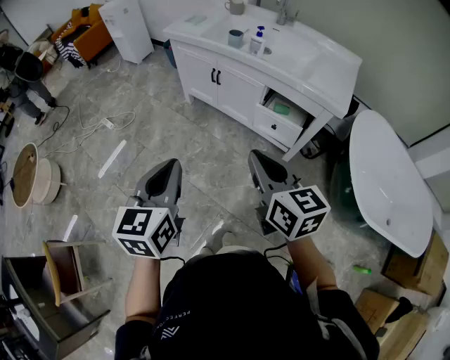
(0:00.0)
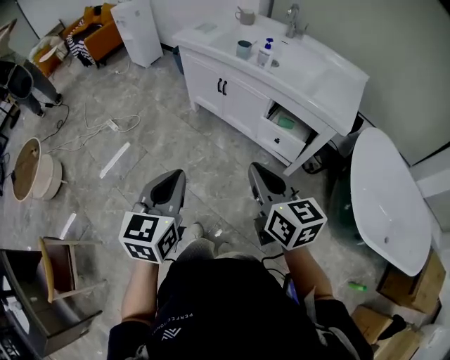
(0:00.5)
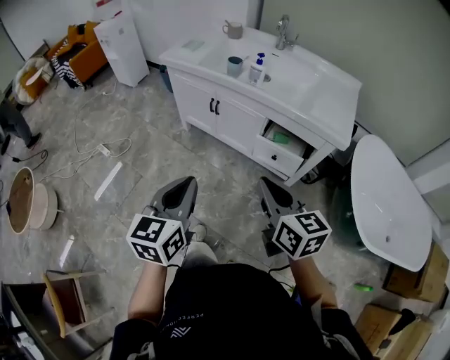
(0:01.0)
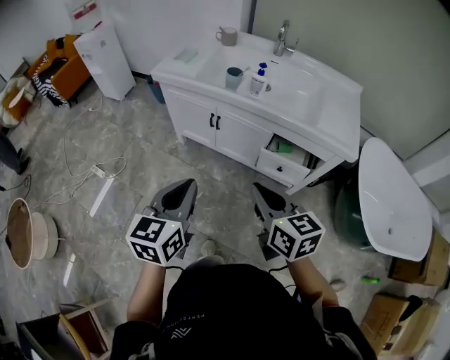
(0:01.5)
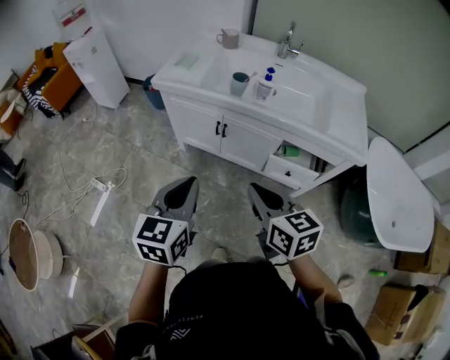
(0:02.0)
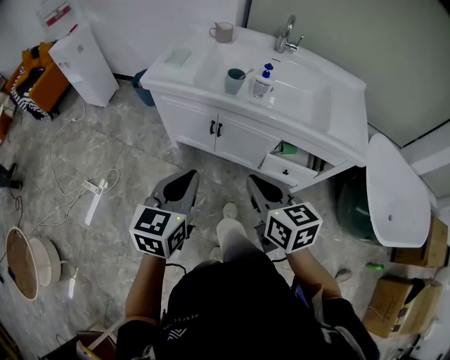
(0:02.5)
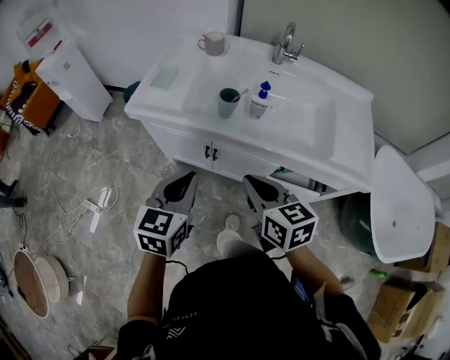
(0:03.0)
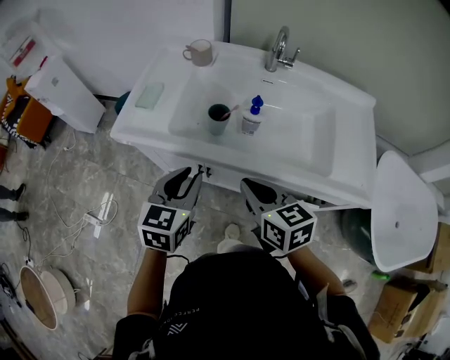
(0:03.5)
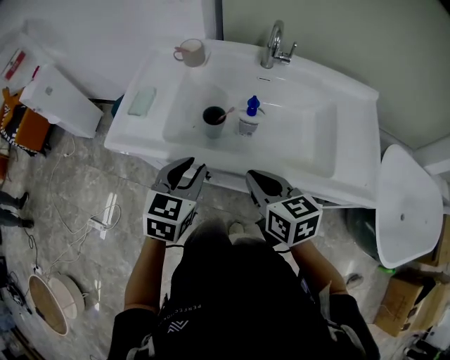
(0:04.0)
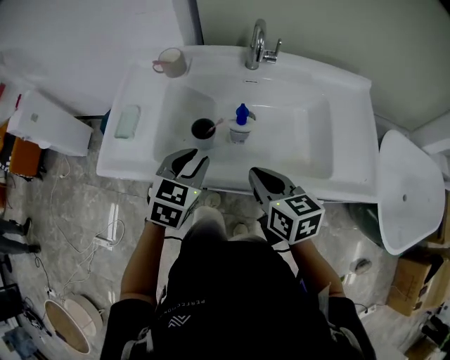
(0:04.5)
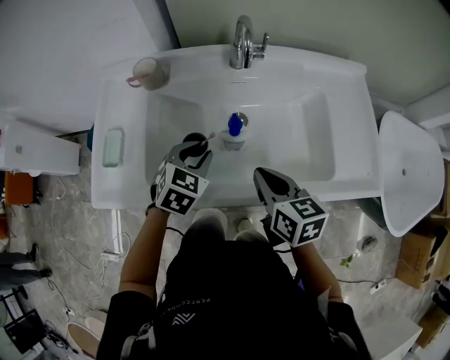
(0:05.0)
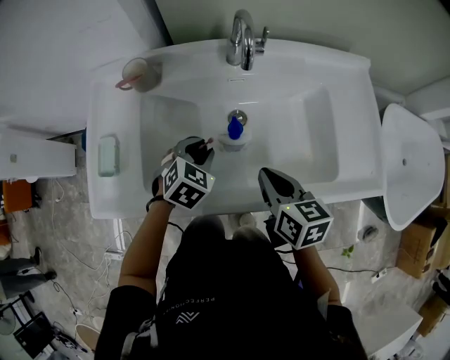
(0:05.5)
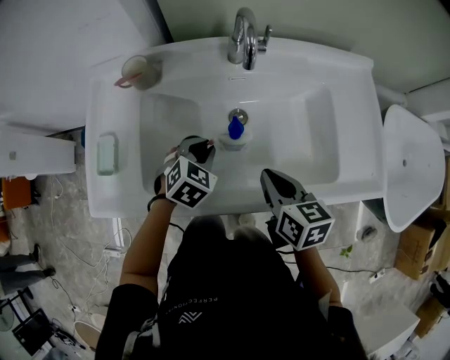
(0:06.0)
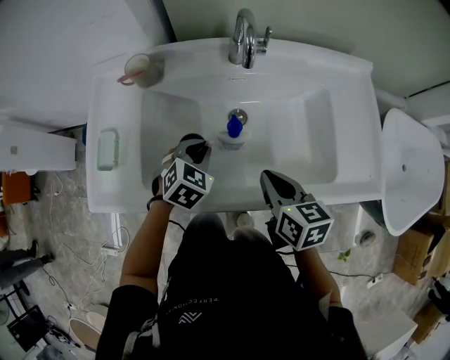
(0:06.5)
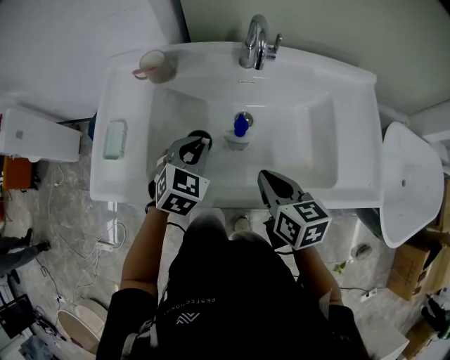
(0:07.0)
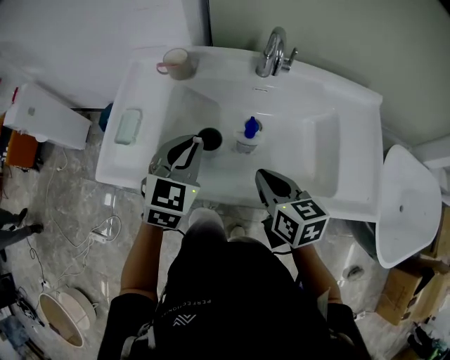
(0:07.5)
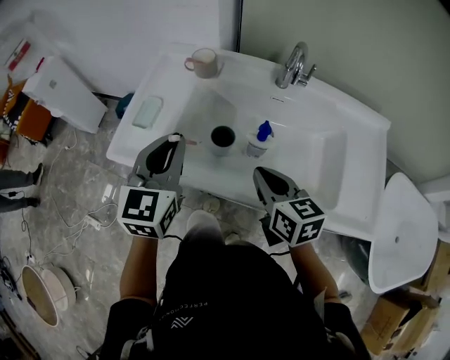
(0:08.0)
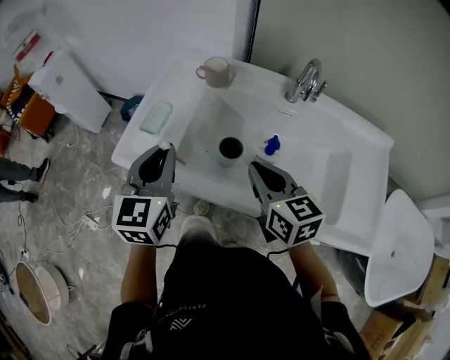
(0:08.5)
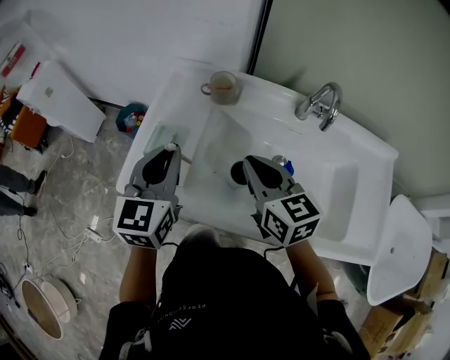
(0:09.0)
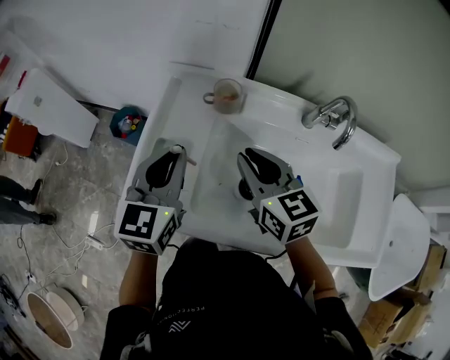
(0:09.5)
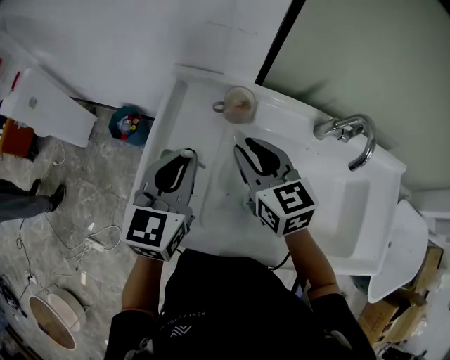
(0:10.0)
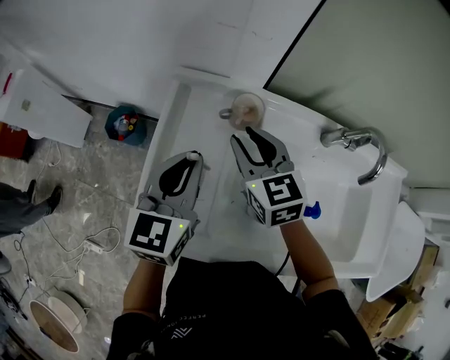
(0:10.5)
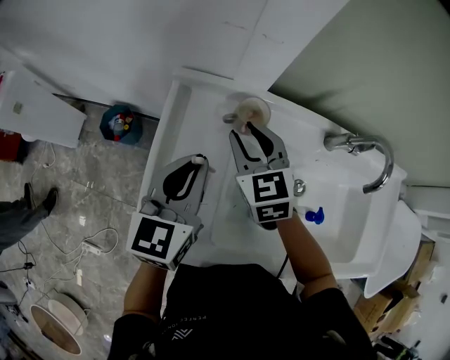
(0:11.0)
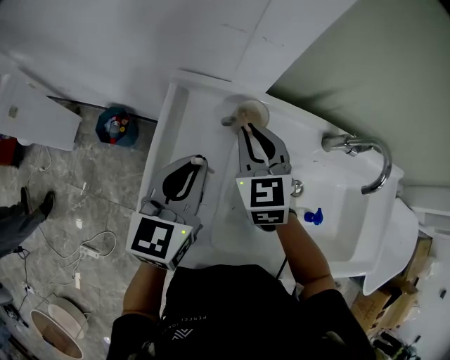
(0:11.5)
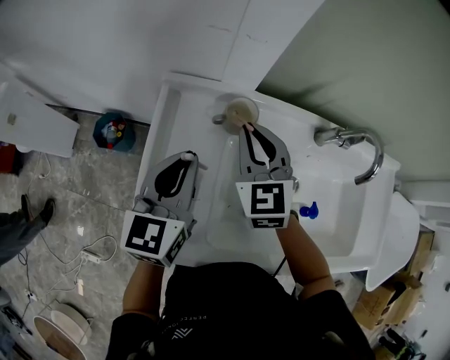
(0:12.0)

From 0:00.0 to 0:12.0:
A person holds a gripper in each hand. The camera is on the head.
From 0:00.0 to 0:02.0: The left gripper travels forward by approximately 30 cm, and swivels roughly 20 degrees. Meanwhile the right gripper travels forward and to the left by roughly 25 cm.
From 0:02.0 to 0:04.0: Both grippers travel together forward, approximately 35 cm. The left gripper turns by approximately 20 degrees, and opens up.
From 0:04.0 to 0:06.0: The left gripper is displaced forward and downward by some 25 cm, and changes its angle by approximately 40 degrees. Meanwhile the right gripper is displaced forward and to the right by about 15 cm, and changes its angle by approximately 30 degrees.
From 0:06.0 to 0:08.0: The right gripper moves some 10 cm, and turns by approximately 30 degrees, while the left gripper travels upward by roughly 20 cm, and points its fingers roughly 40 degrees further upward.
From 0:08.0 to 0:10.0: The left gripper moves forward, approximately 20 cm; the right gripper is displaced forward and to the left by roughly 30 cm.
From 0:10.0 to 0:12.0: The right gripper shifts roughly 10 cm forward, and changes its angle by about 30 degrees. Meanwhile the left gripper ends up roughly 5 cm from where it was.

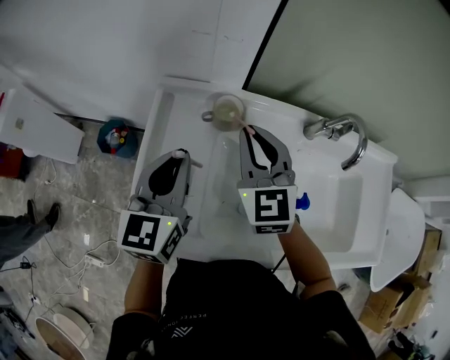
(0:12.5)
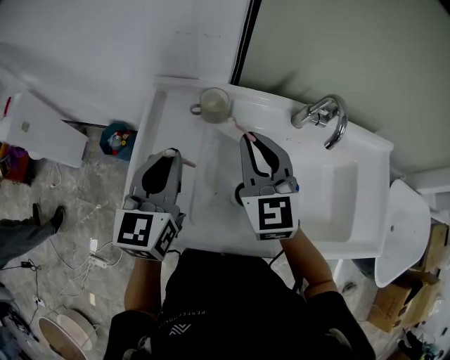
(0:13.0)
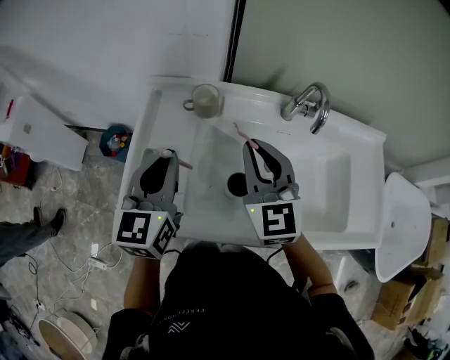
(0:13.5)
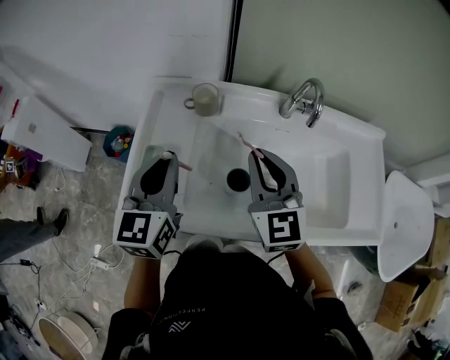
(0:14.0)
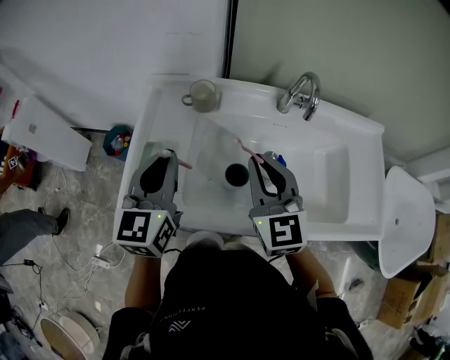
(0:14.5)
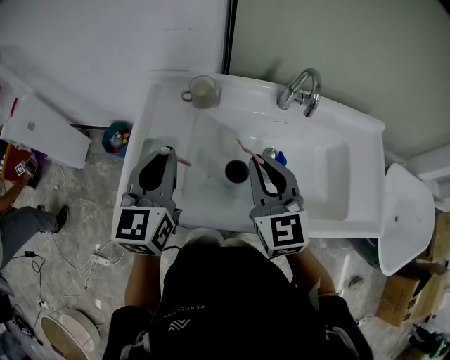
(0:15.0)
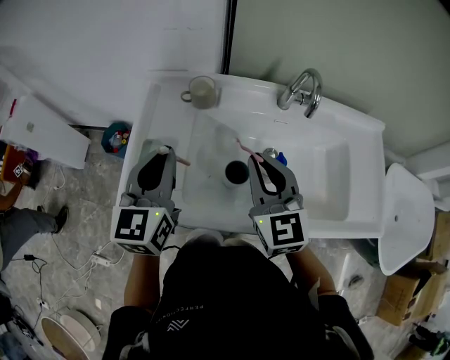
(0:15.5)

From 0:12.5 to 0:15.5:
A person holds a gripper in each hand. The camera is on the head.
From 0:12.5 to 0:14.0: The left gripper moves backward, about 10 cm. The right gripper goes approximately 15 cm backward and to the right.
From 0:14.0 to 0:15.5: There are only small adjustments of the grippers.

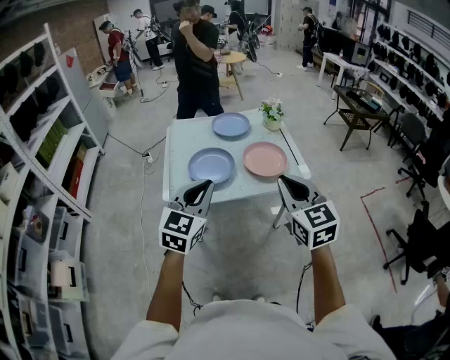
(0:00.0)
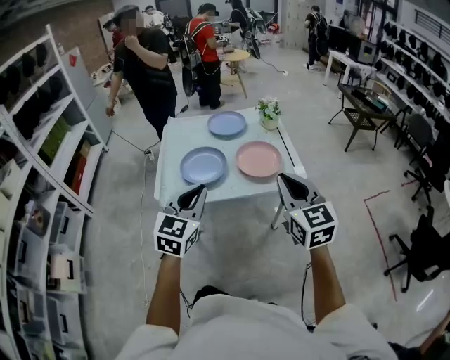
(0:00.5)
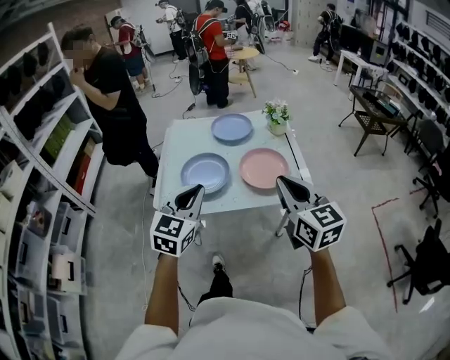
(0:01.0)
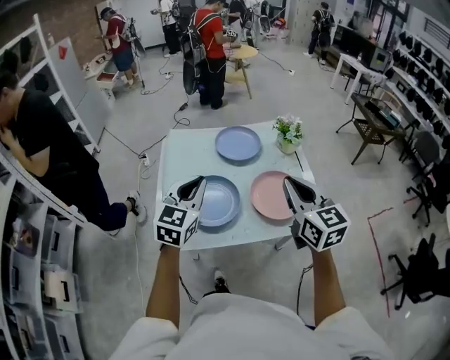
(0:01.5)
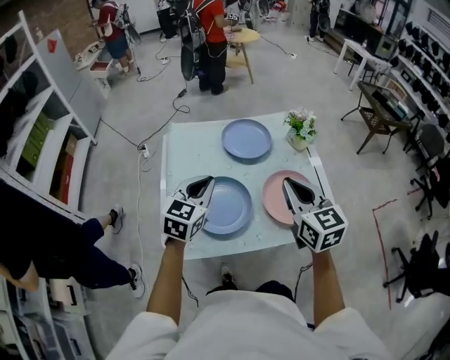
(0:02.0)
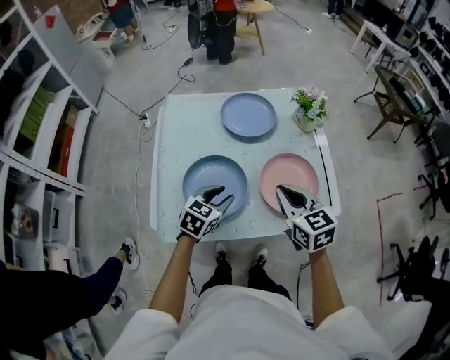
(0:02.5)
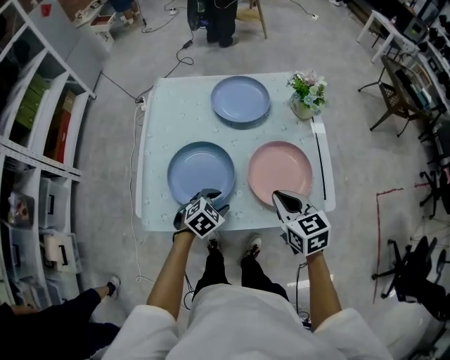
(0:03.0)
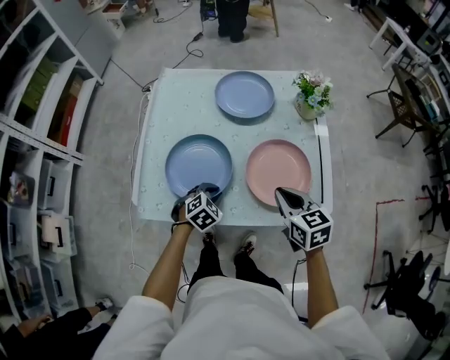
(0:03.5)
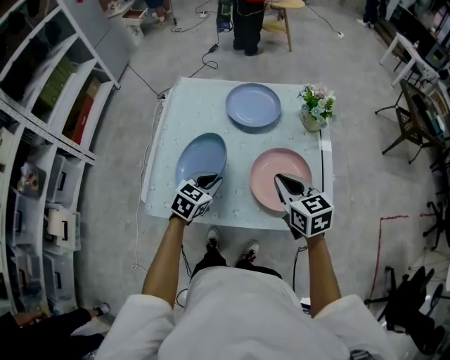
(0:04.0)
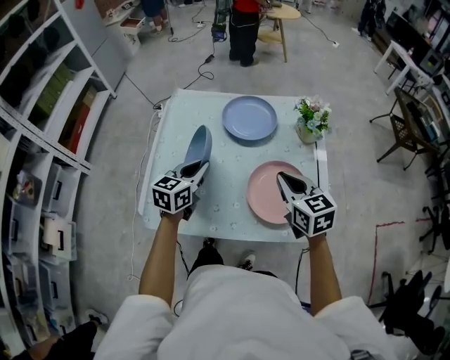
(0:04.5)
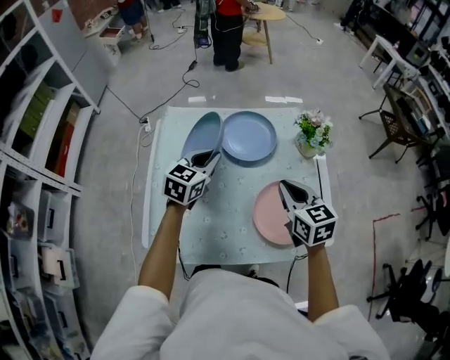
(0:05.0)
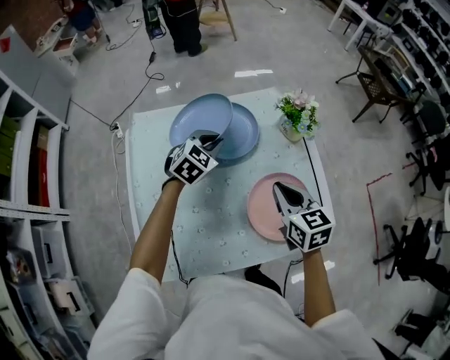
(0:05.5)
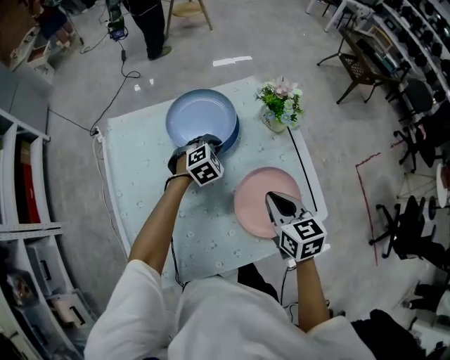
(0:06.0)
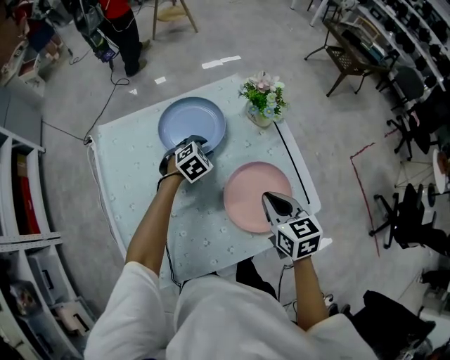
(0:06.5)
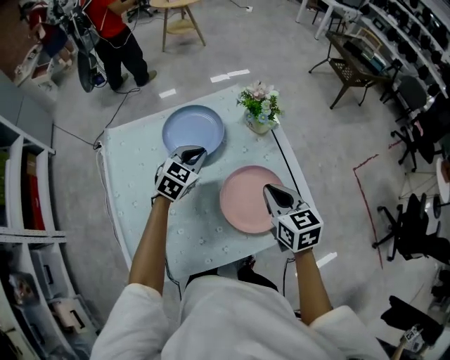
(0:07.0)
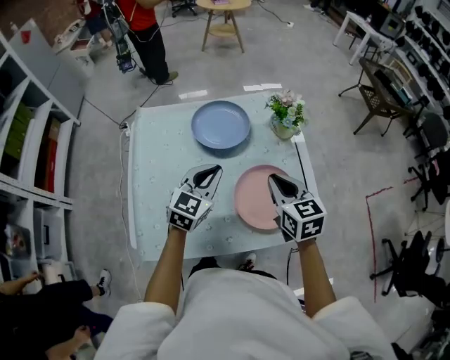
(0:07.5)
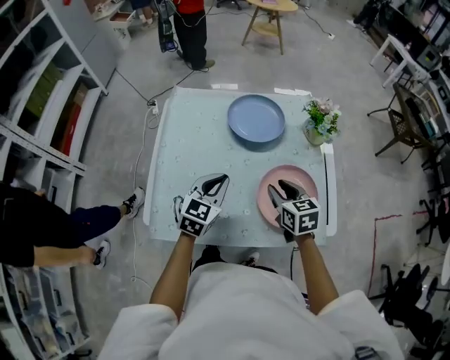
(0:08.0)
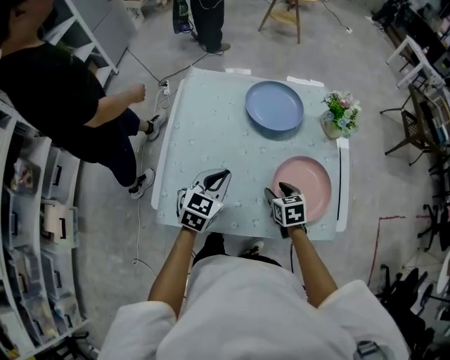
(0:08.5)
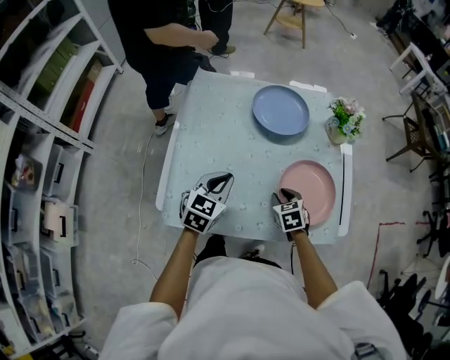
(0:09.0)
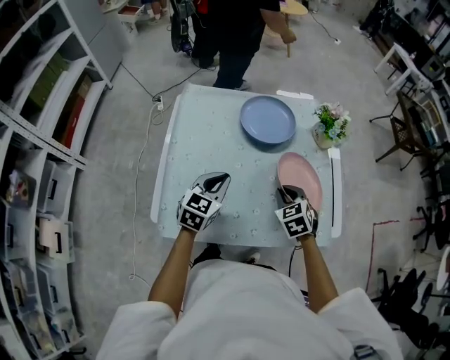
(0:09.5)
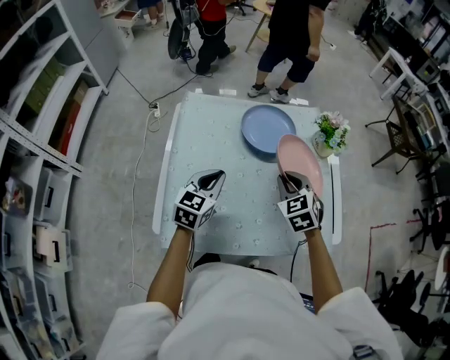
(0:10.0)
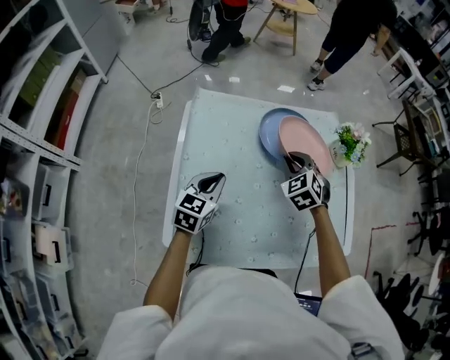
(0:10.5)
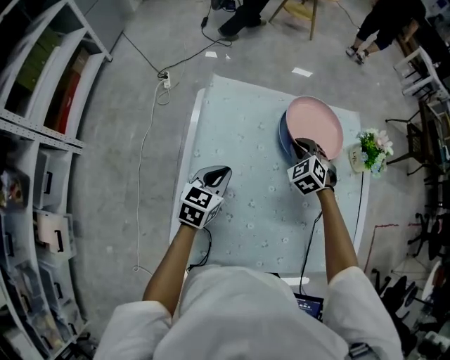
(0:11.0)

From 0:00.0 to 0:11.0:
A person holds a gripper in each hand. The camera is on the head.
From 0:00.0 to 0:02.0: Both grippers move forward, roughly 35 cm.
From 0:02.0 to 0:03.5: Both grippers move downward and to the right, roughly 25 cm. The right gripper turns by some 30 degrees. The left gripper tilts its fingers roughly 40 degrees downward, and opens and closes again.
From 0:03.5 to 0:05.5: The left gripper travels forward and upward by about 35 cm, and swivels some 20 degrees. Meanwhile the right gripper is displaced forward by roughly 15 cm.
From 0:05.5 to 0:07.5: The right gripper shifts by some 5 cm, while the left gripper shifts about 15 cm backward and to the right, travels downward and back again, approximately 15 cm each way, swivels some 20 degrees, and opens and closes again.
From 0:07.5 to 0:09.0: The right gripper shifts roughly 25 cm downward and to the left, changes its angle by some 30 degrees, and opens its fingers. The left gripper is displaced to the left, backward and downward by about 15 cm.
From 0:09.0 to 0:11.0: The left gripper goes approximately 20 cm to the left and forward; the right gripper goes some 30 cm forward and to the left, rotates roughly 40 degrees, and closes its fingers.
